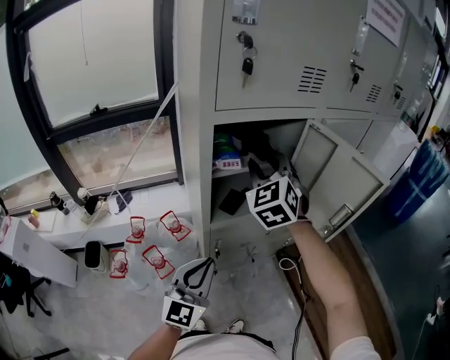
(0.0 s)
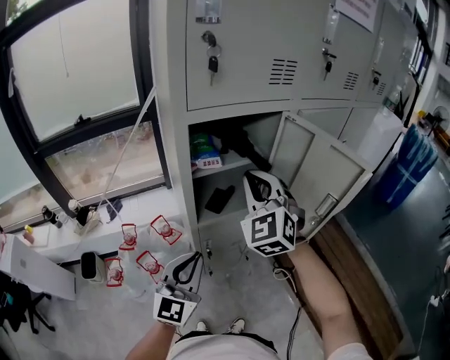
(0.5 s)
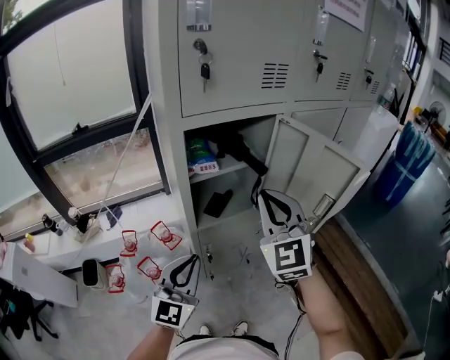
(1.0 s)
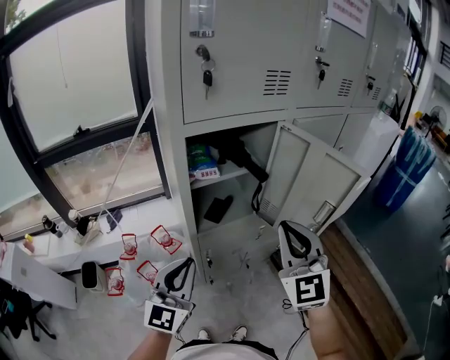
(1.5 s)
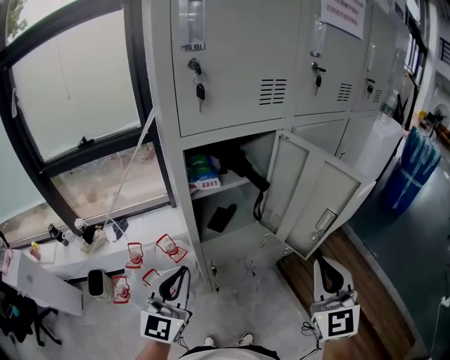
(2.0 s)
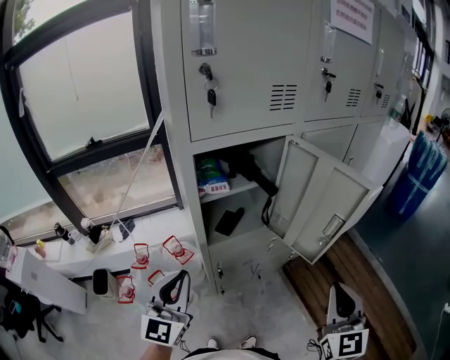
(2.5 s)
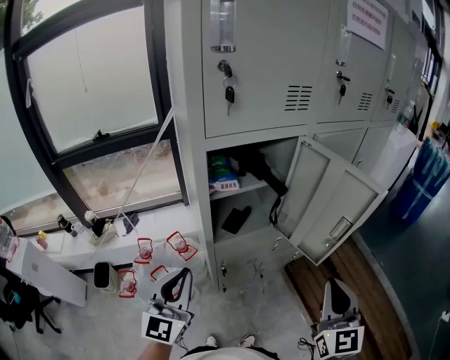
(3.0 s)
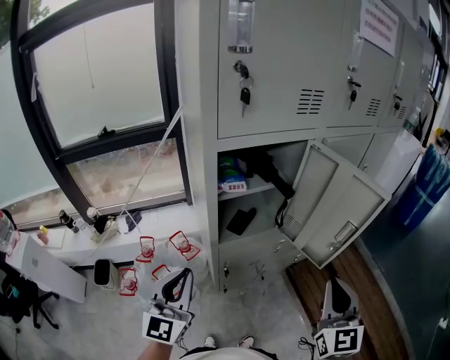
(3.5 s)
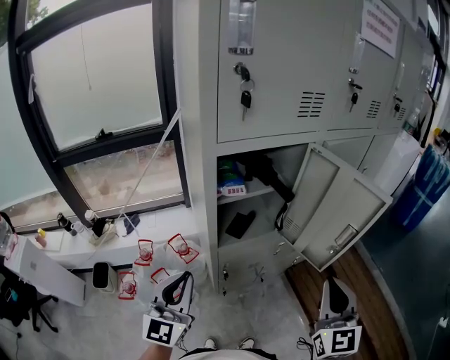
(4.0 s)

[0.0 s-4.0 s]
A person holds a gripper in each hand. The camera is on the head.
0.0 to 2.0 s: The left gripper heads upward, covering roughly 5 cm; the right gripper travels backward and to the right by some 30 cm, turns by about 30 degrees, and closes up.
2.0 to 4.0 s: The grippers make only small movements.

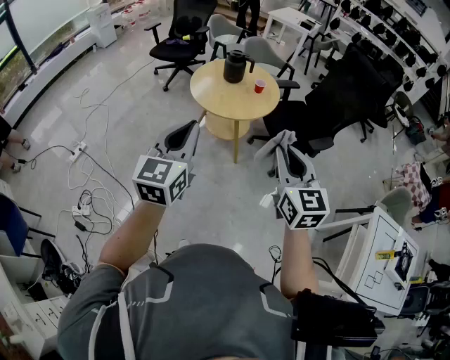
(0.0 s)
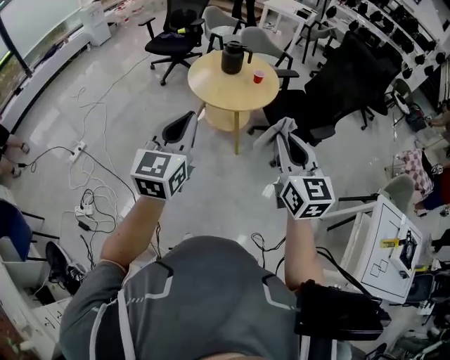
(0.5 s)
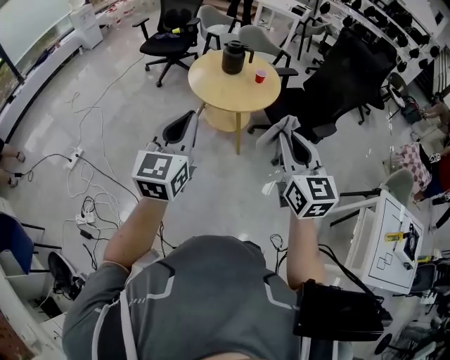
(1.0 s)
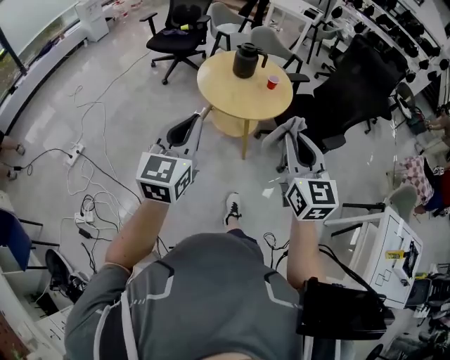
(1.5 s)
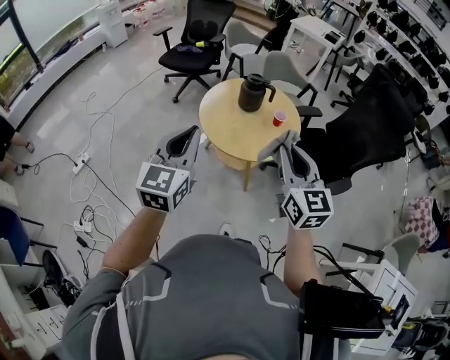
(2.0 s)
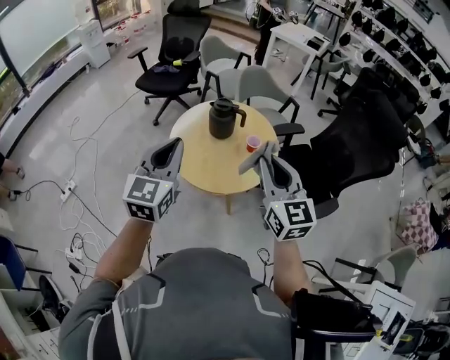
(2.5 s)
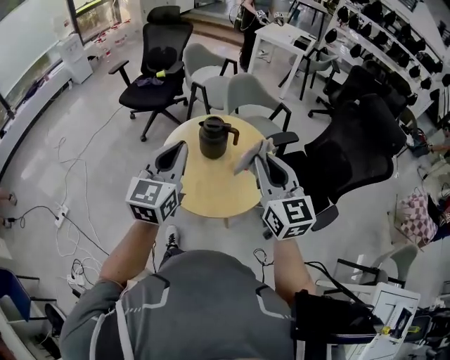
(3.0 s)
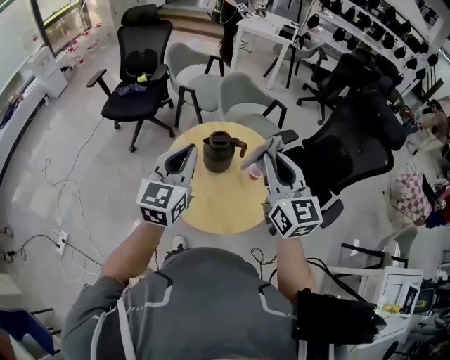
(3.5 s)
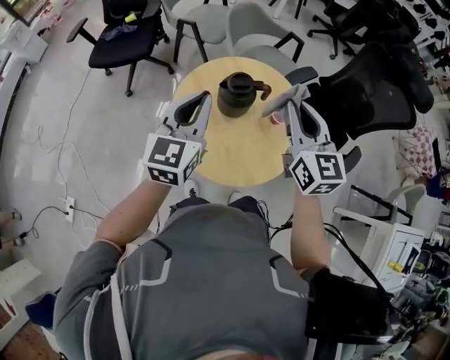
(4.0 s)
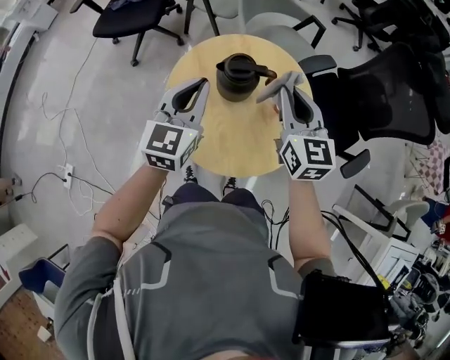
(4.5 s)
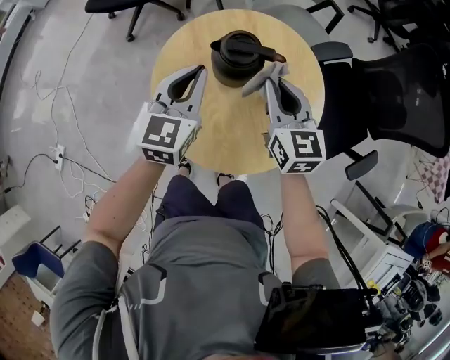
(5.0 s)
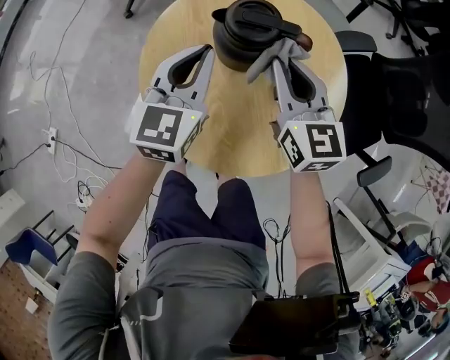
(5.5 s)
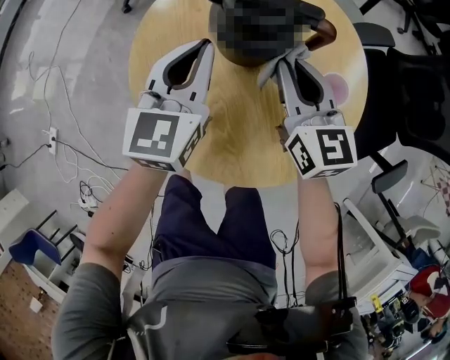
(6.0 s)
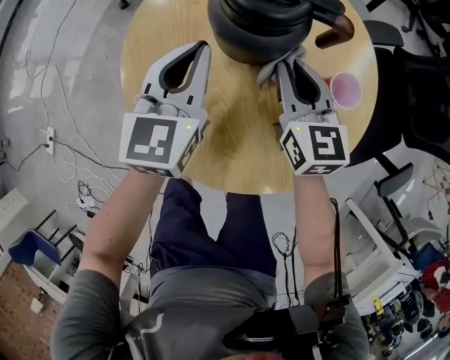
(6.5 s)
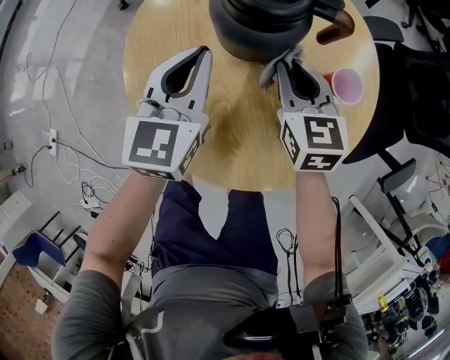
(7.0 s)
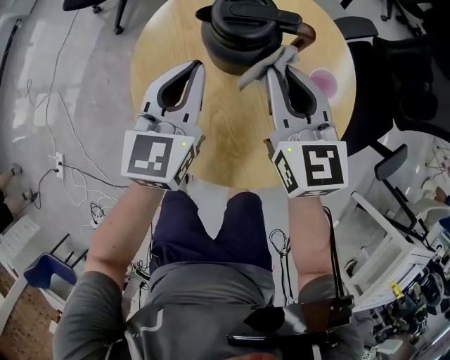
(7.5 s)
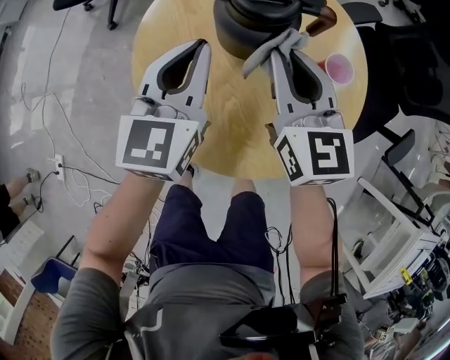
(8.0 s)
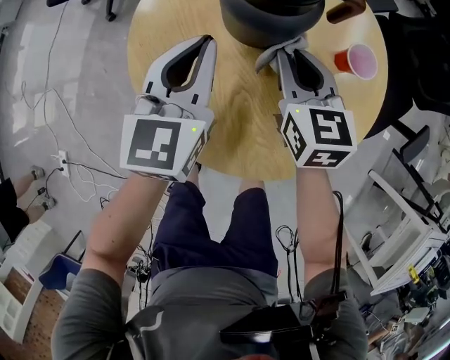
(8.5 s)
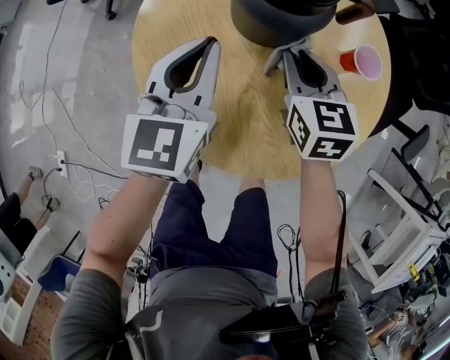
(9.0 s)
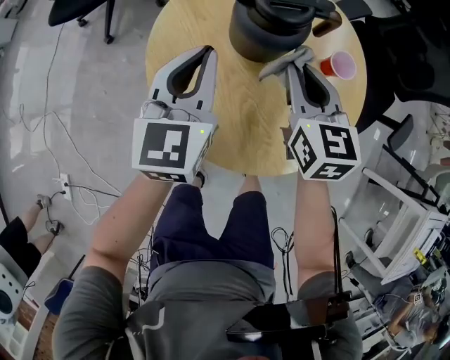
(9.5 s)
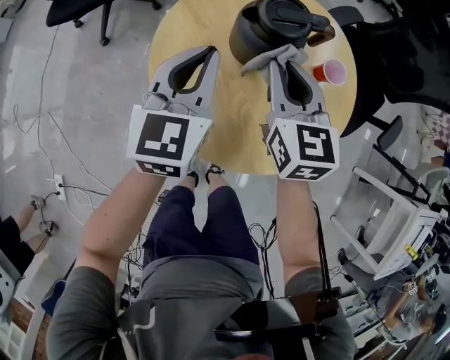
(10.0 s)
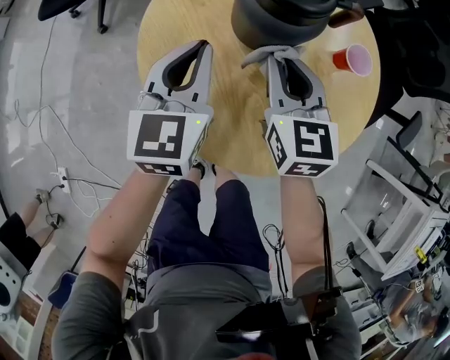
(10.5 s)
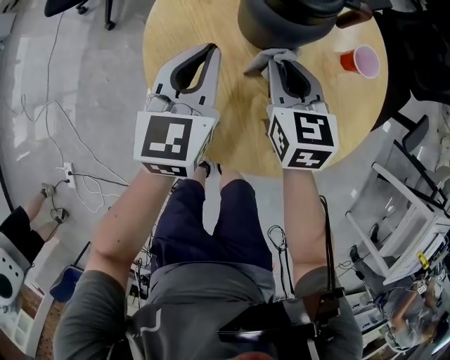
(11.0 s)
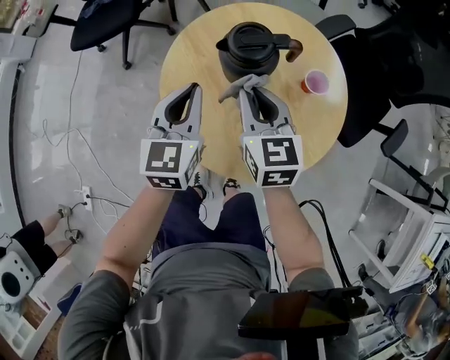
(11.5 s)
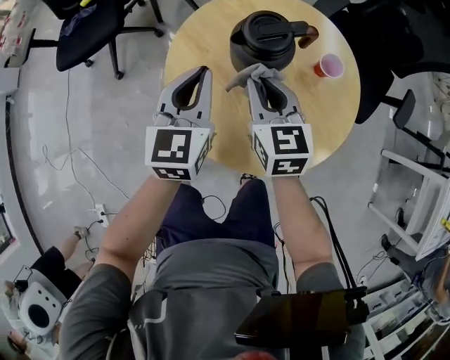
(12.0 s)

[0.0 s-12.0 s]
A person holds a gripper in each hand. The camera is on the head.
0.0 to 2.0 s: Both grippers travel together forward, some 25 cm.
2.0 to 4.0 s: Both grippers move forward, roughly 40 cm. The right gripper swivels about 20 degrees. Meanwhile the left gripper swivels approximately 20 degrees.
4.0 to 6.0 s: The grippers both shift downward by approximately 30 cm. The right gripper rotates some 20 degrees.
6.0 to 8.0 s: The right gripper goes downward and returns, some 5 cm each way.
8.0 to 10.0 s: The right gripper reaches about 10 cm downward, then returns. Meanwhile the left gripper goes downward and returns, roughly 5 cm each way.
10.0 to 12.0 s: The left gripper reaches approximately 10 cm downward, then returns. The right gripper moves about 10 cm downward and comes back.

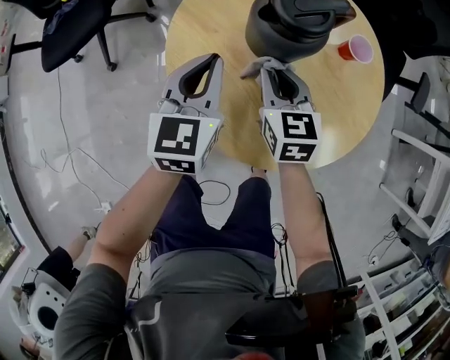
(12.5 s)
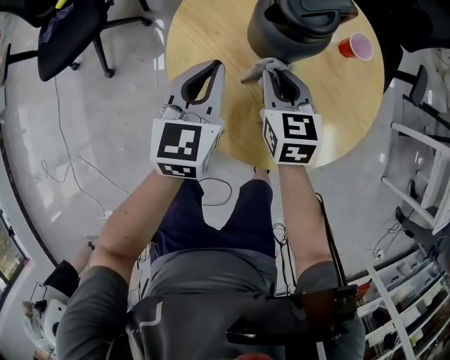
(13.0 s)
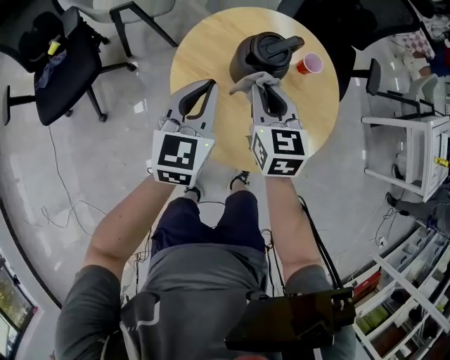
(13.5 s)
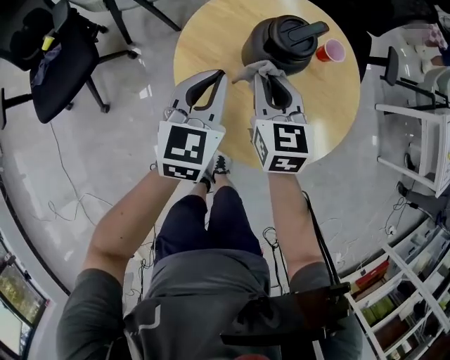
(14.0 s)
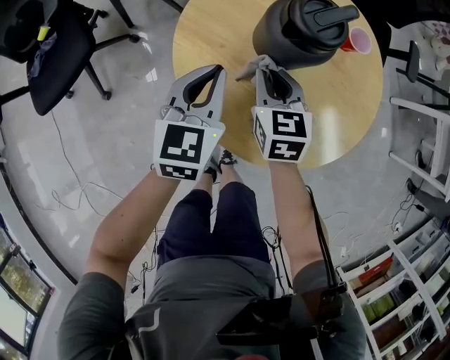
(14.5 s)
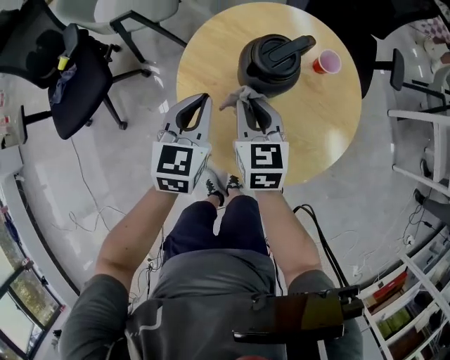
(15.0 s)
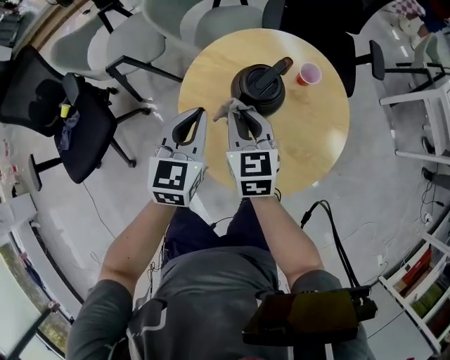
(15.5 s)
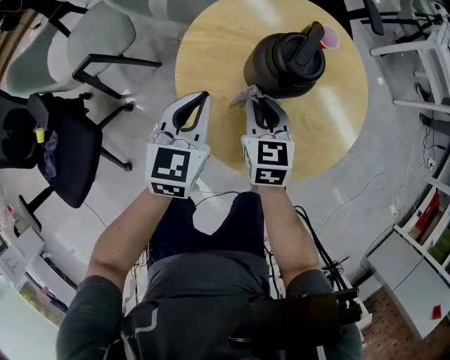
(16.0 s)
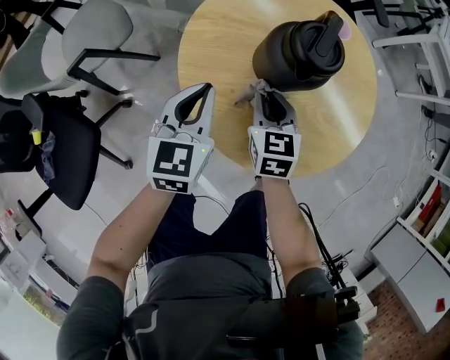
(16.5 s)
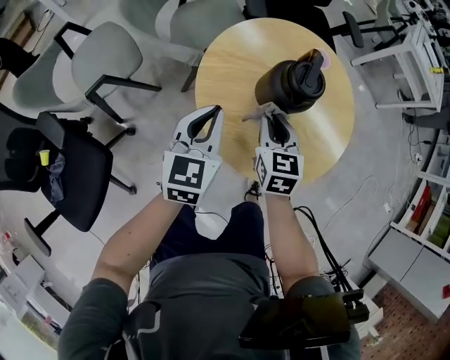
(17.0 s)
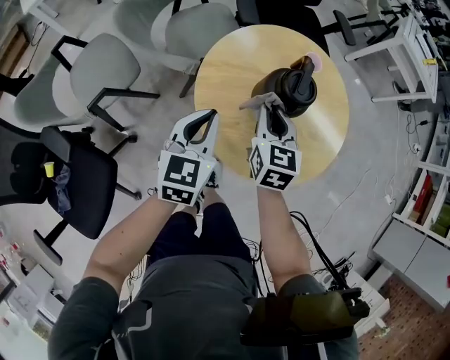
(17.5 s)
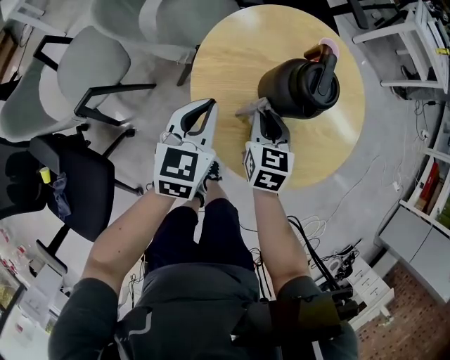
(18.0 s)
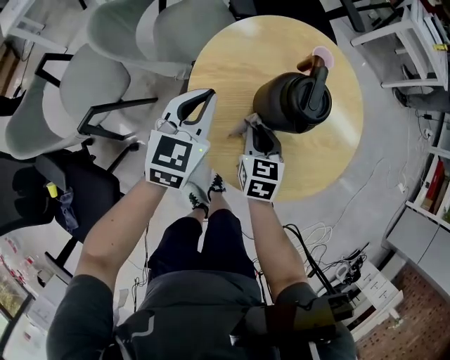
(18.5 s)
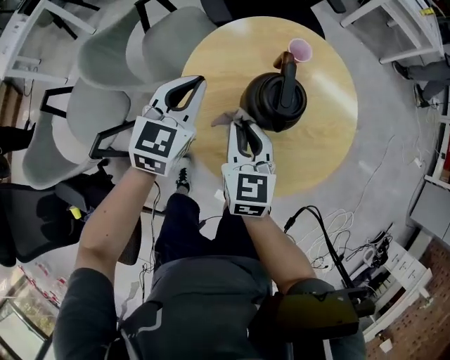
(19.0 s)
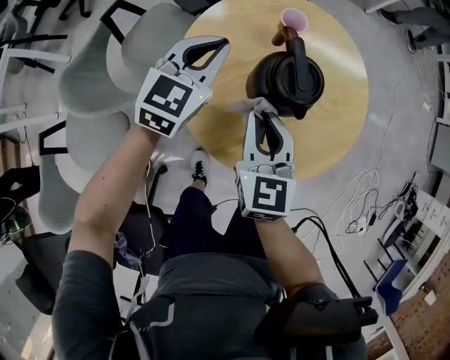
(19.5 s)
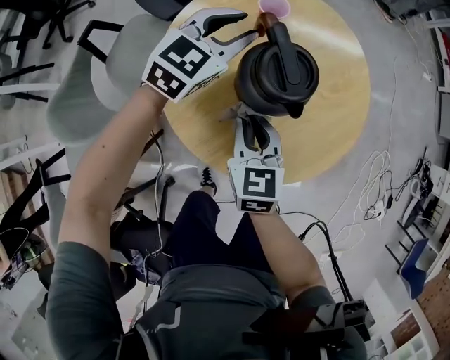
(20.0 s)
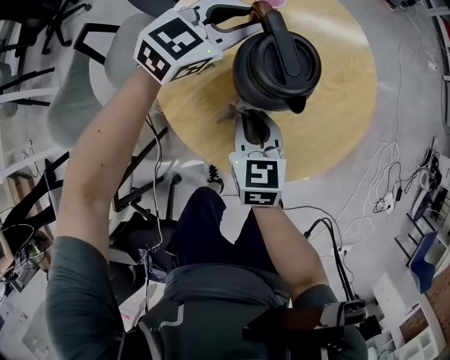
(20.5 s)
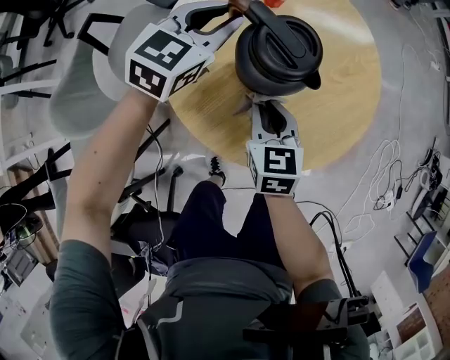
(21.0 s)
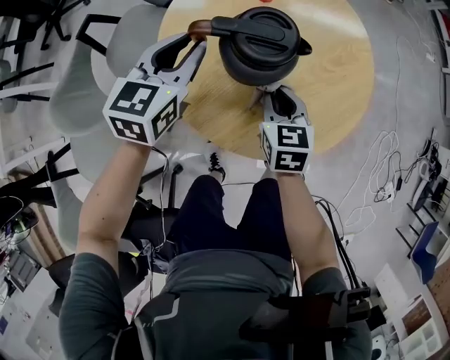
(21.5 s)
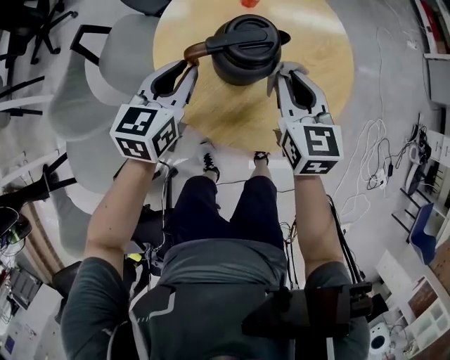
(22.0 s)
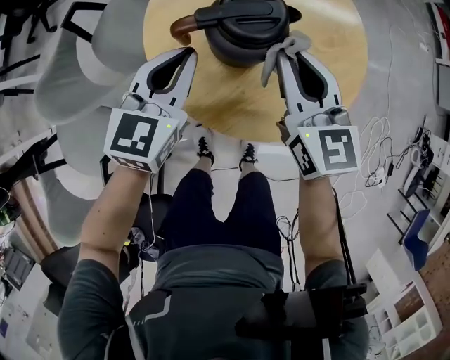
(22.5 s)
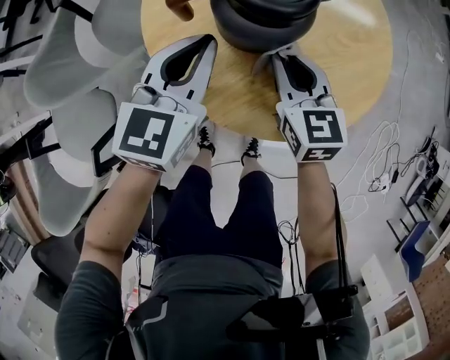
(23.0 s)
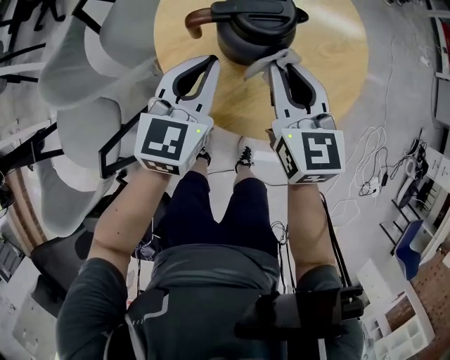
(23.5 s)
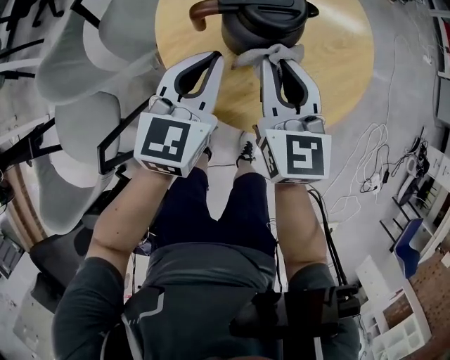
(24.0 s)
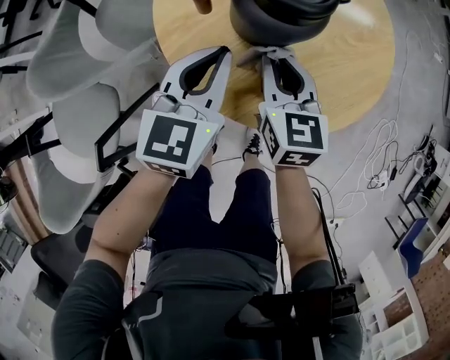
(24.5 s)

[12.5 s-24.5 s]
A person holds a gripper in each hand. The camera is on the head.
12.5 to 14.5 s: The right gripper moves about 15 cm upward and comes back, while the left gripper goes upward and returns, some 10 cm each way.
14.5 to 16.5 s: The left gripper travels upward and back again, approximately 10 cm each way, and turns by approximately 30 degrees, while the right gripper travels upward and back again, some 15 cm each way, and changes its angle by about 30 degrees.
16.5 to 18.5 s: The right gripper goes upward and returns, some 15 cm each way; the left gripper travels forward by roughly 10 cm.
18.5 to 20.5 s: The right gripper goes upward and returns, roughly 15 cm each way, and turns by about 30 degrees. The left gripper ends up about 25 cm from where it was, turns by some 70 degrees, and opens up.
20.5 to 22.5 s: The right gripper travels upward and to the right by about 15 cm, while the left gripper heads backward and to the left, covering roughly 15 cm, rotates approximately 30 degrees, and closes its fingers.
22.5 to 24.5 s: The right gripper goes up and down, about 15 cm each way, reversing 2 times, while the left gripper moves approximately 5 cm.
